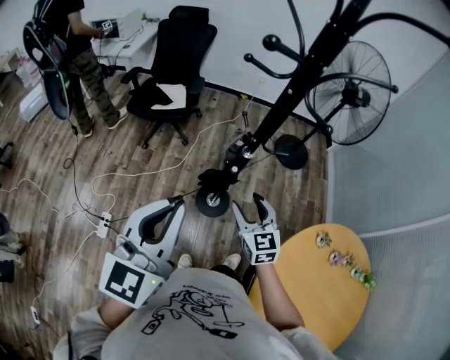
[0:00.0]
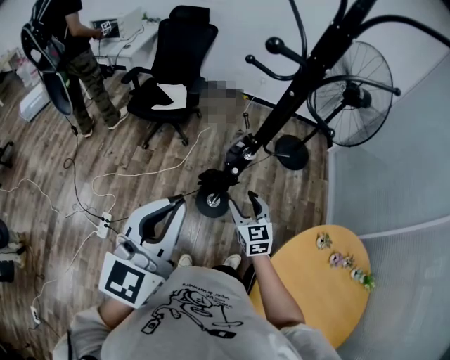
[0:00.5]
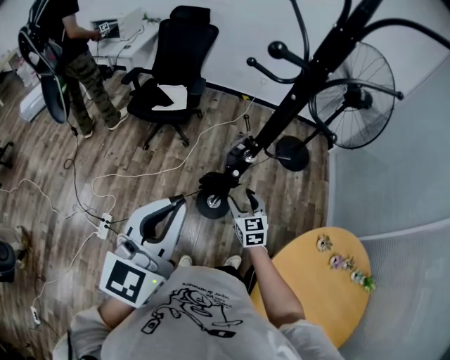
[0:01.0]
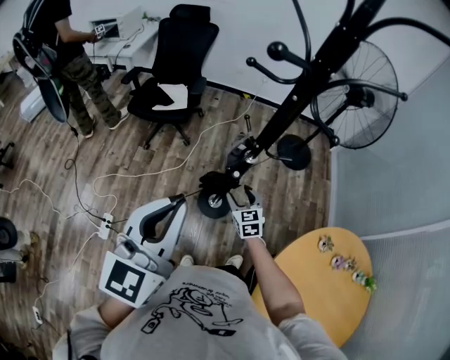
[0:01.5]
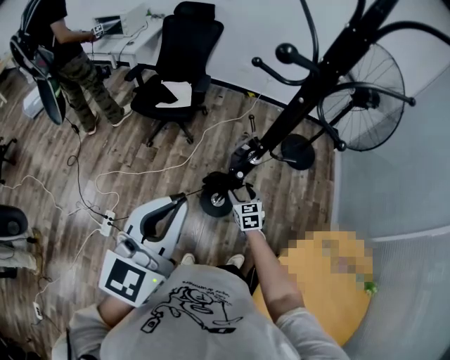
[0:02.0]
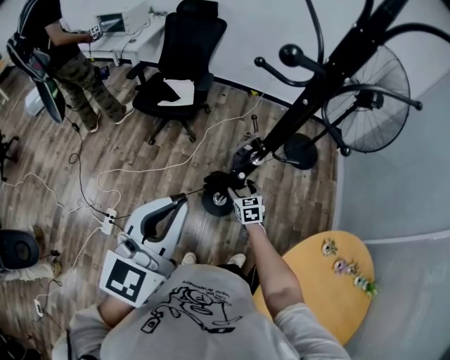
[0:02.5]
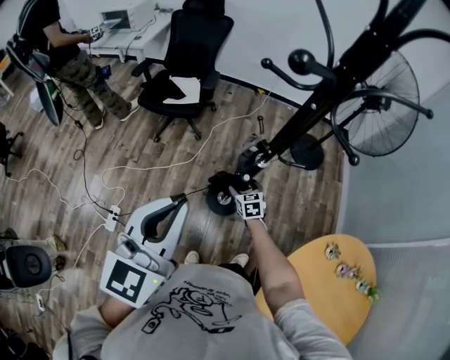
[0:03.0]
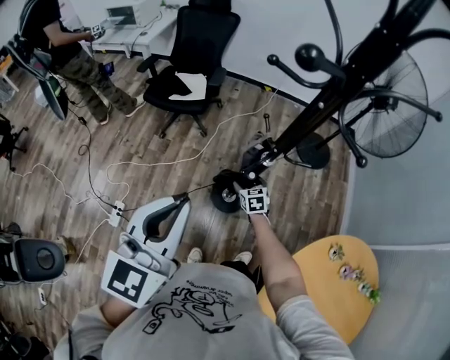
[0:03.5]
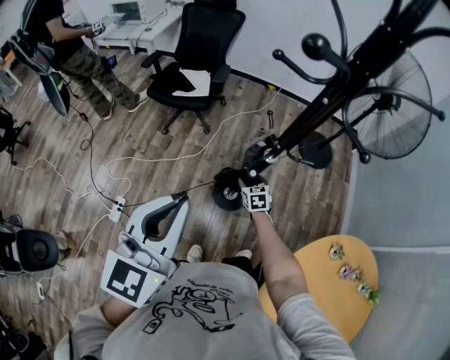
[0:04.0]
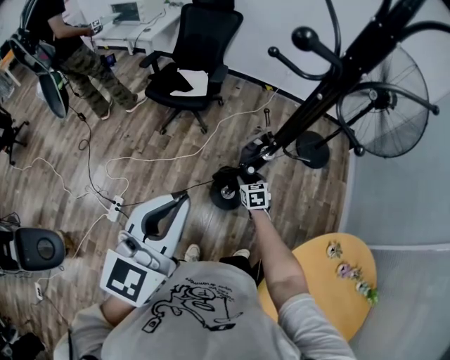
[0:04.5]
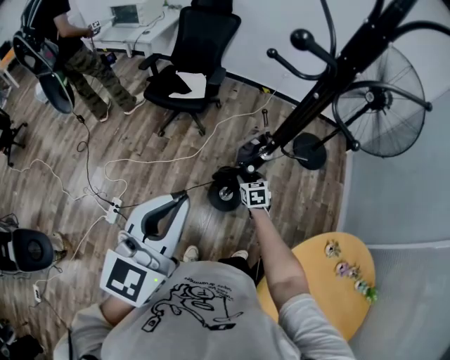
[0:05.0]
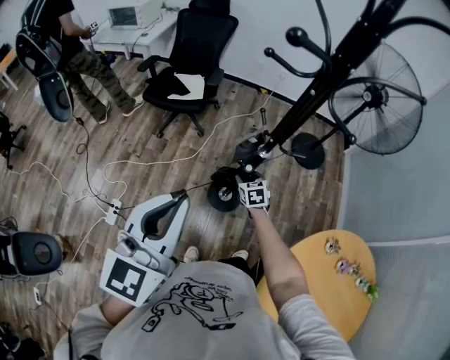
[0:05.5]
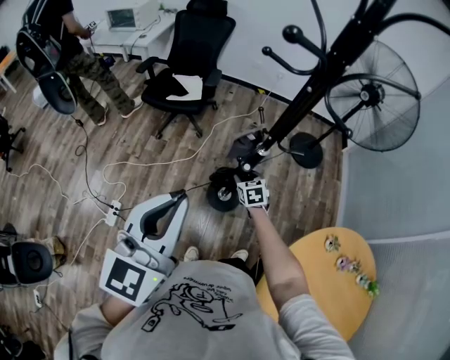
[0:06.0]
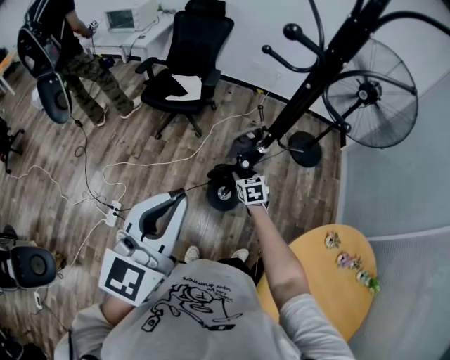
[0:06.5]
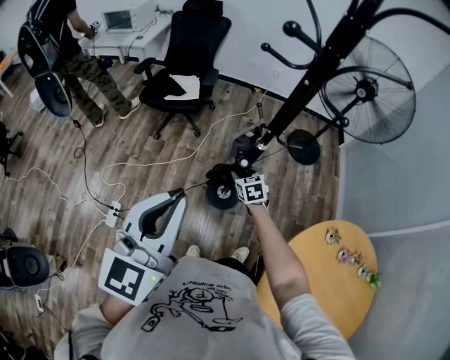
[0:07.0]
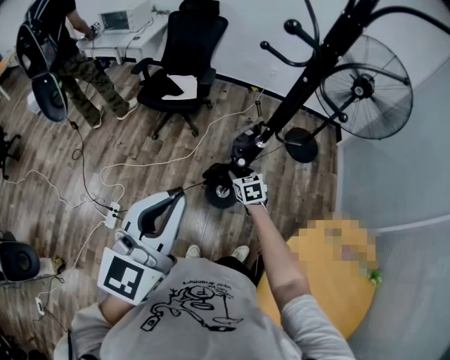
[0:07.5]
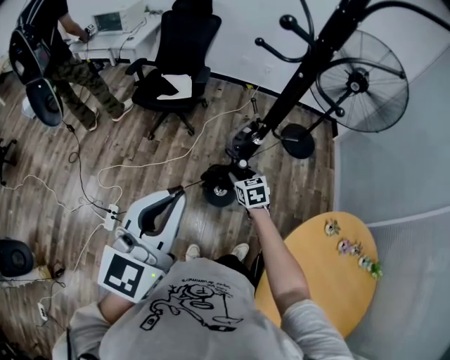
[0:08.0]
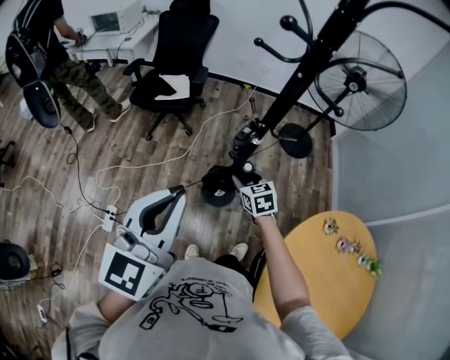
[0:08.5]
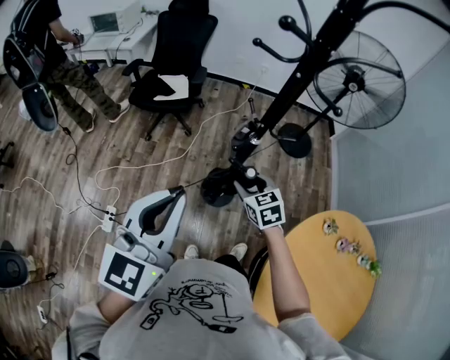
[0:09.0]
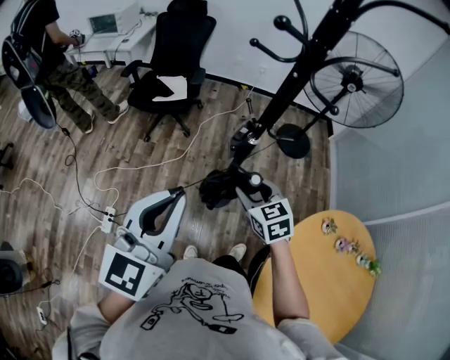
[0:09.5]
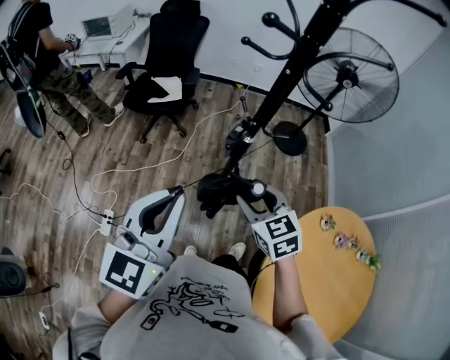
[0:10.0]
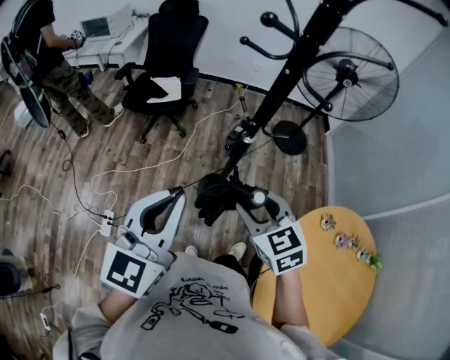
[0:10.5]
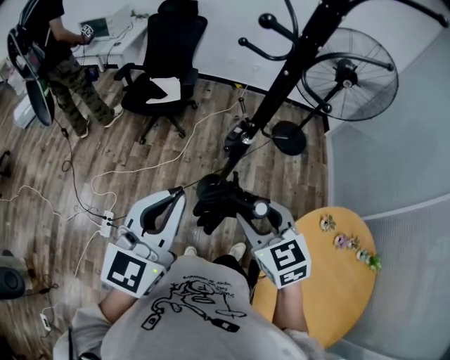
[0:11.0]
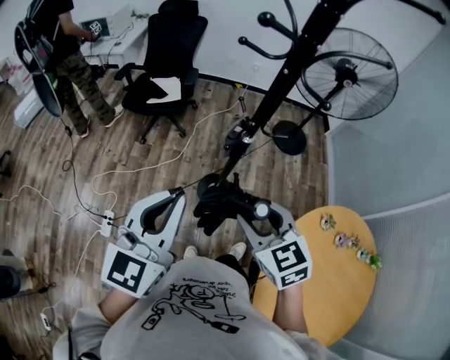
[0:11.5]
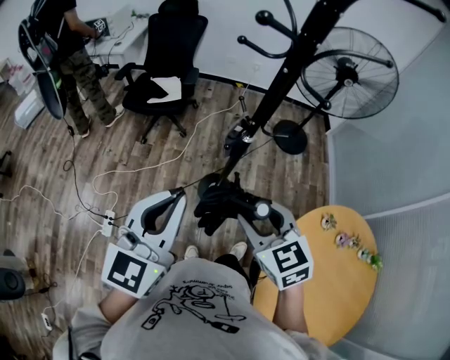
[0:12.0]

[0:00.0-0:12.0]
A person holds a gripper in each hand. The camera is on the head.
0:00.0 to 0:02.0: The right gripper travels downward and forward by approximately 20 cm.
0:02.0 to 0:04.0: The right gripper is displaced downward by approximately 5 cm.
0:04.0 to 0:06.0: The right gripper travels upward by roughly 5 cm.
0:06.0 to 0:08.0: The right gripper shifts roughly 10 cm upward and backward.
0:08.0 to 0:10.0: The right gripper travels upward and backward by some 25 cm.
0:10.0 to 0:12.0: The right gripper goes approximately 5 cm backward.

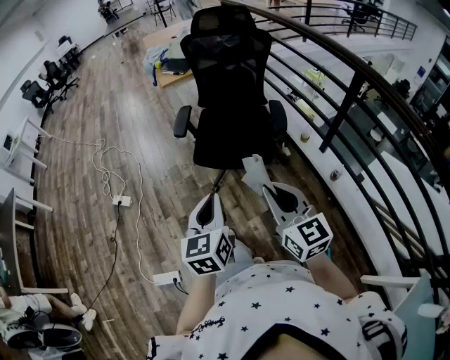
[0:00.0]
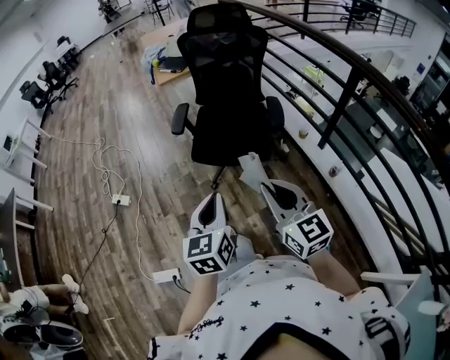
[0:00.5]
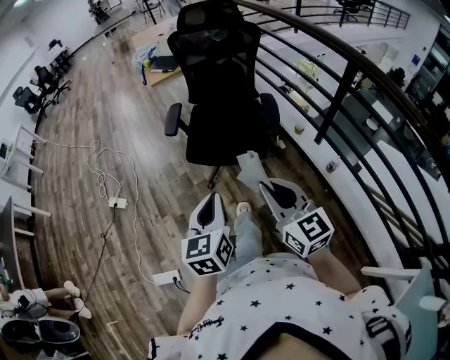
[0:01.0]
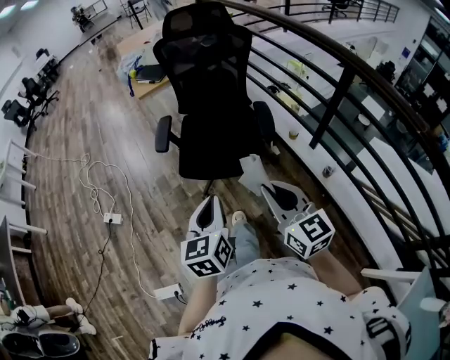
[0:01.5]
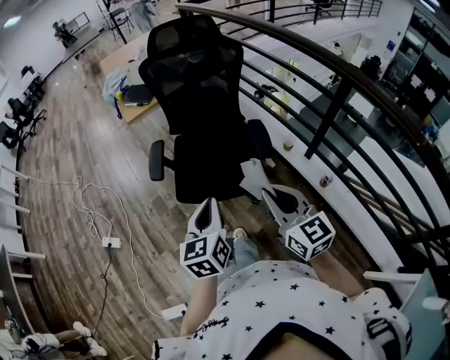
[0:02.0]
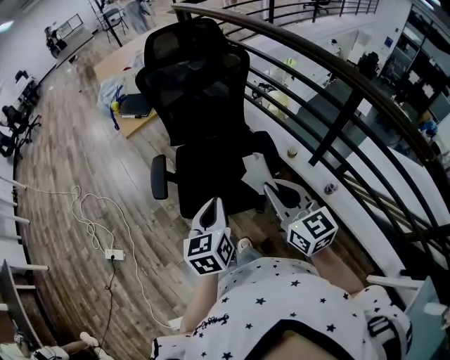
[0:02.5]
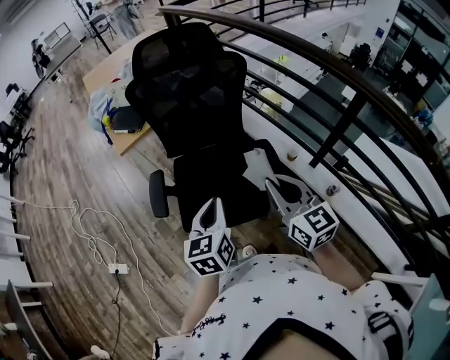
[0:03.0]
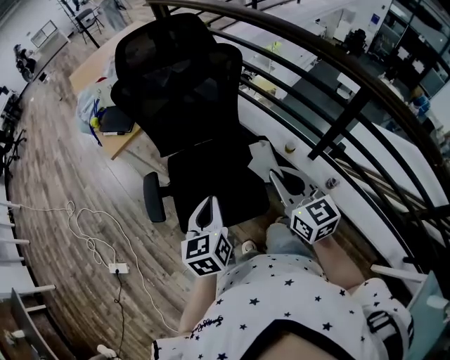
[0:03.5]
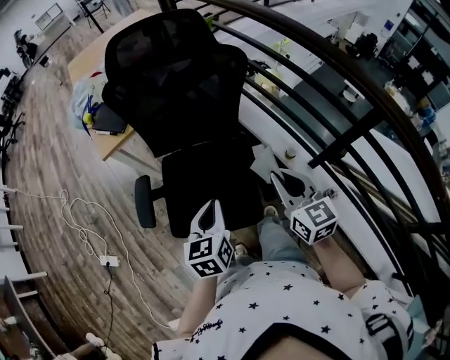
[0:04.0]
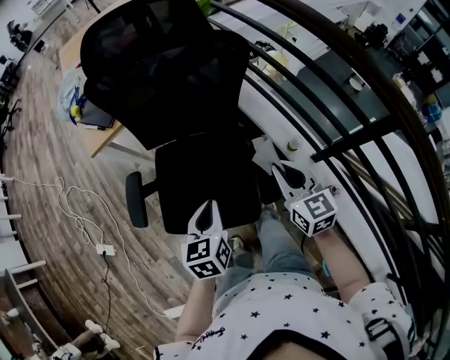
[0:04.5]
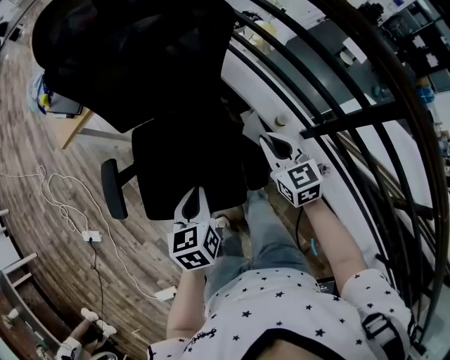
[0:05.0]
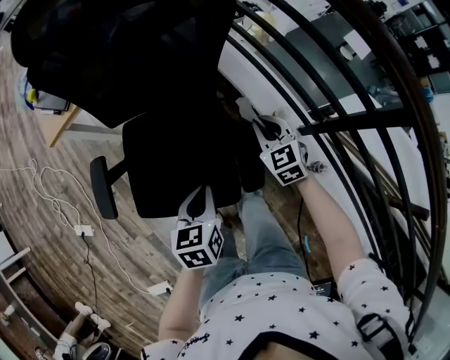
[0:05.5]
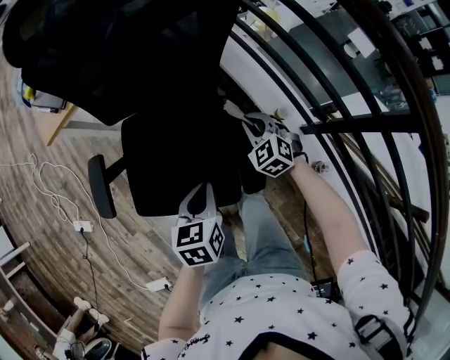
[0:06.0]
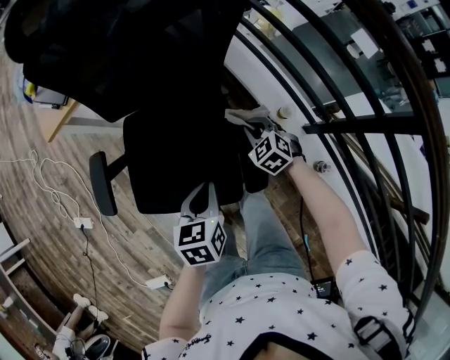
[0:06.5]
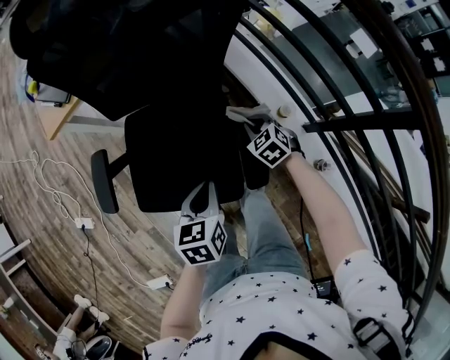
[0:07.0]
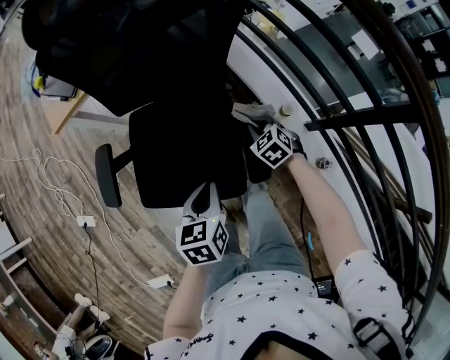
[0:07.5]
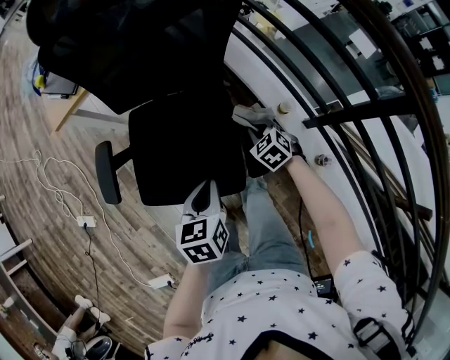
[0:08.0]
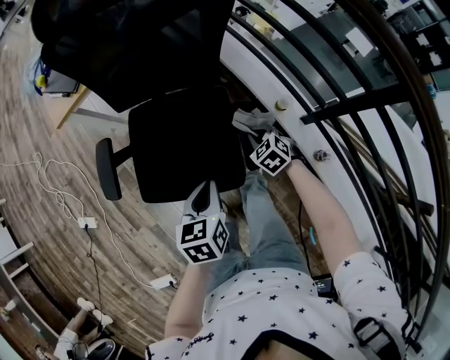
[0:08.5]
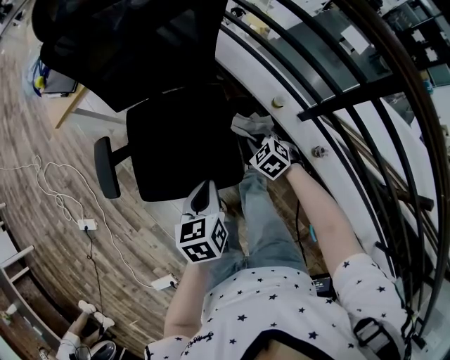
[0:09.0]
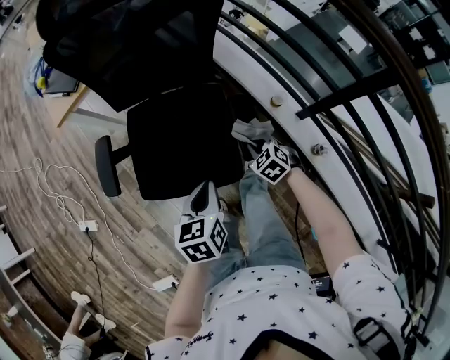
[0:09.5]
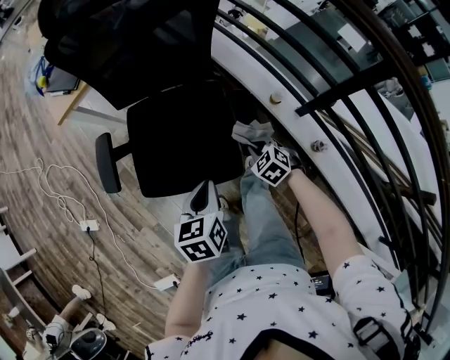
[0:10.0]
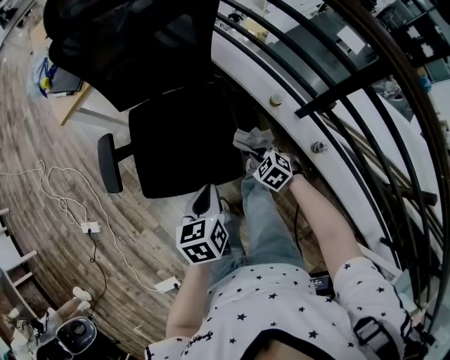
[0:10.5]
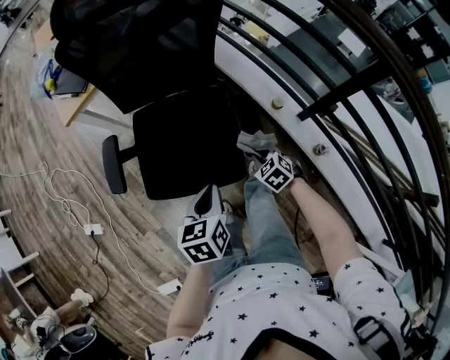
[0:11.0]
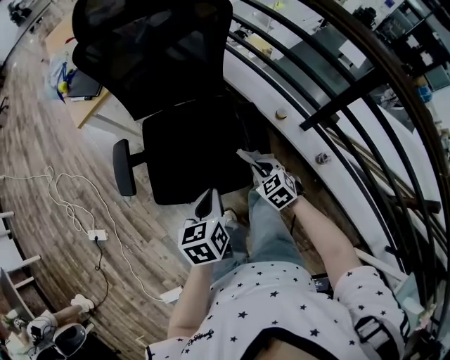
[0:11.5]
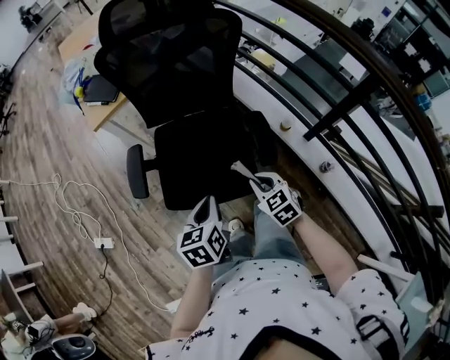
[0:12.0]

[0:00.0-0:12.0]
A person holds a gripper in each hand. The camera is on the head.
0:00.0 to 0:02.0: The right gripper travels forward and to the right by roughly 20 cm. Meanwhile the left gripper is displaced forward by roughly 20 cm.
0:02.0 to 0:04.0: Both grippers travel together forward, some 25 cm.
0:04.0 to 0:06.0: The left gripper moves downward, to the right and forward, some 15 cm, while the right gripper shifts roughly 35 cm downward and forward, and swivels approximately 50 degrees.
0:06.0 to 0:08.0: The right gripper goes roughly 5 cm backward.
0:08.0 to 0:10.0: The right gripper is displaced backward by about 15 cm; the left gripper is displaced backward by some 5 cm.
0:10.0 to 0:12.0: The right gripper travels upward, to the left and backward by about 15 cm, and rotates about 20 degrees; the left gripper is displaced to the left by about 10 cm.

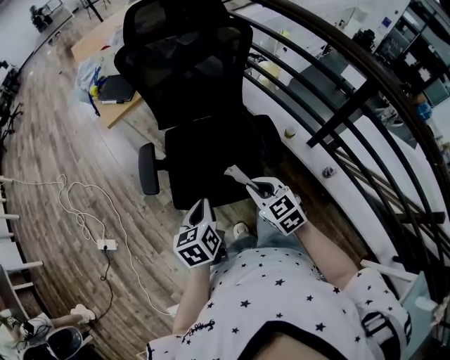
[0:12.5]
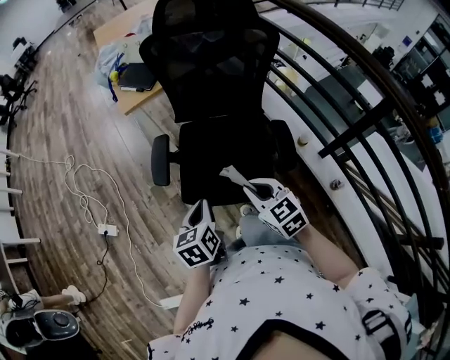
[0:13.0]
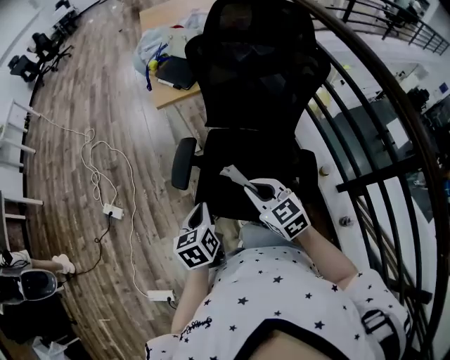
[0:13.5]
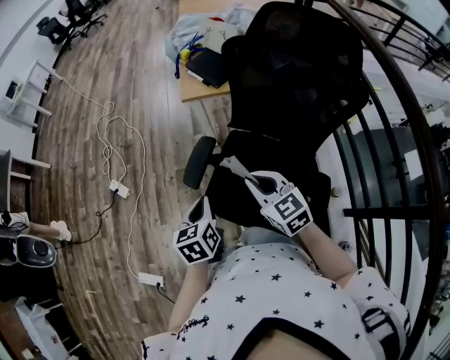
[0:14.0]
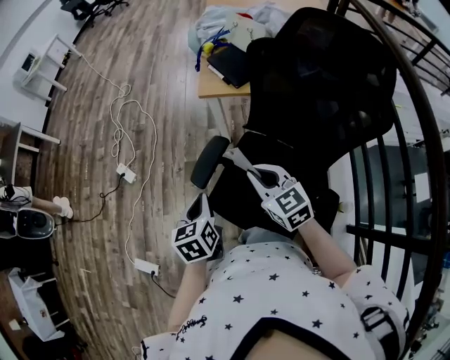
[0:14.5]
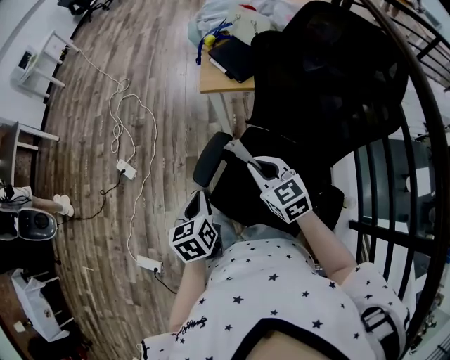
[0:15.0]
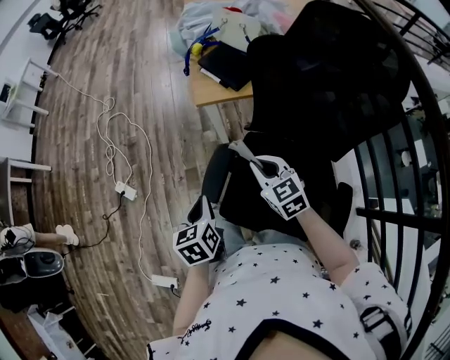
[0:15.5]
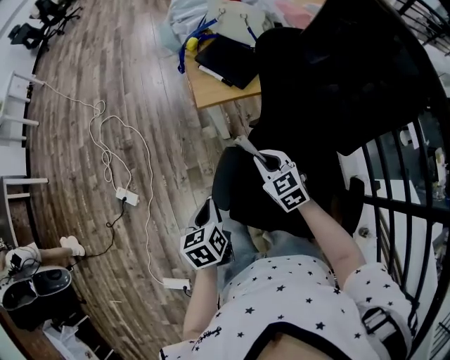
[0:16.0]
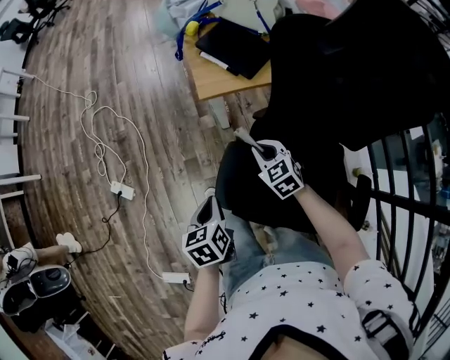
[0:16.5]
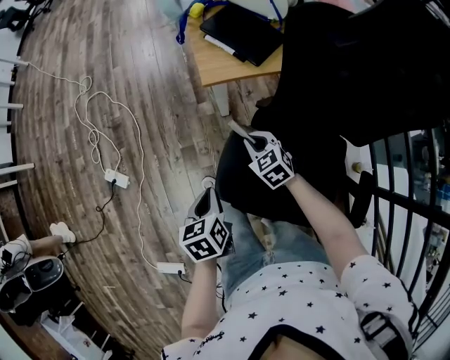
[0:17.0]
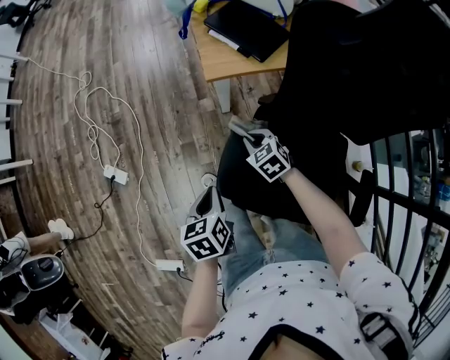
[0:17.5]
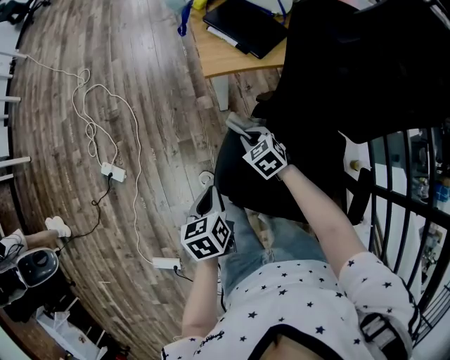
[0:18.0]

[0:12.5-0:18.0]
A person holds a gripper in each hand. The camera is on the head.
0:12.5 to 0:14.5: The left gripper changes place by about 20 cm, and rotates some 40 degrees; the right gripper moves roughly 30 cm, and changes its angle by about 40 degrees.
0:14.5 to 0:16.0: Both grippers move forward and downward, roughly 15 cm.
0:16.0 to 0:18.0: The left gripper goes approximately 5 cm downward, while the right gripper travels downward and to the left by roughly 15 cm.
